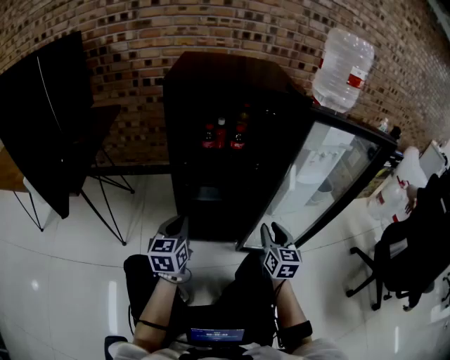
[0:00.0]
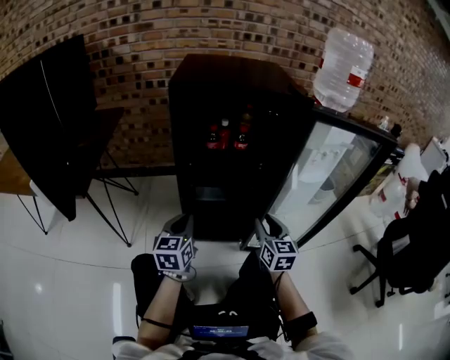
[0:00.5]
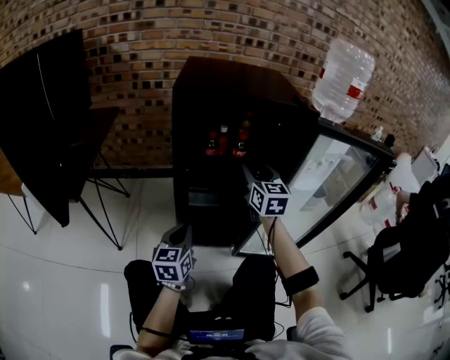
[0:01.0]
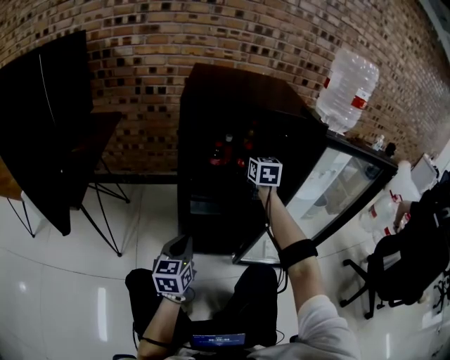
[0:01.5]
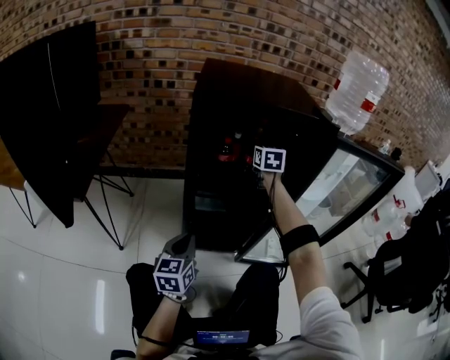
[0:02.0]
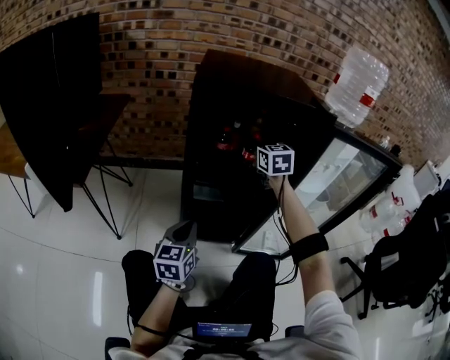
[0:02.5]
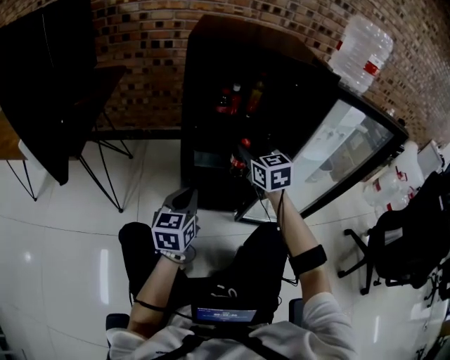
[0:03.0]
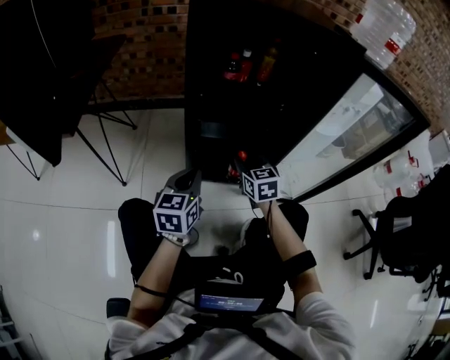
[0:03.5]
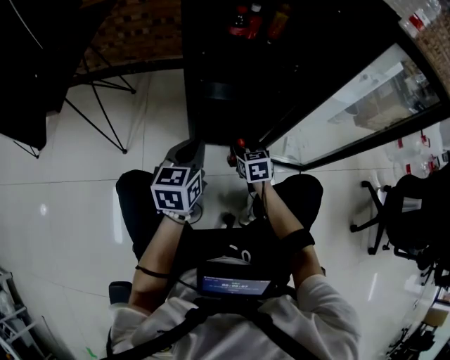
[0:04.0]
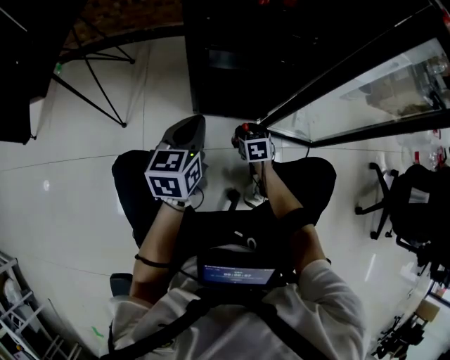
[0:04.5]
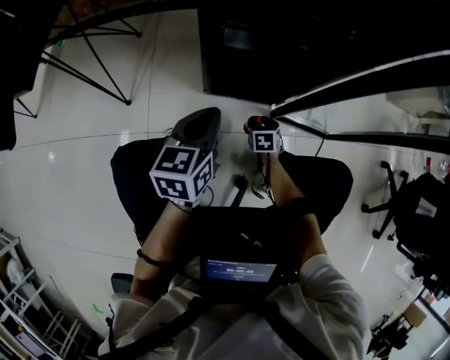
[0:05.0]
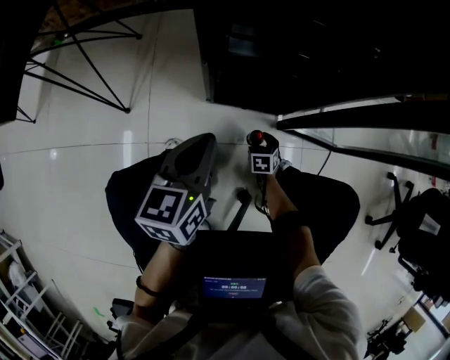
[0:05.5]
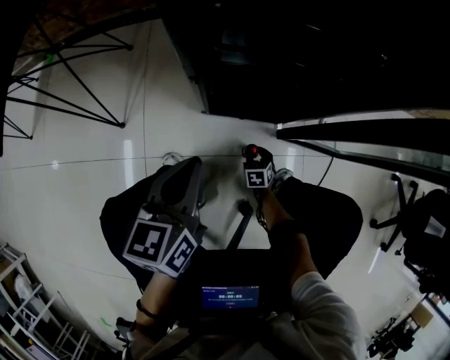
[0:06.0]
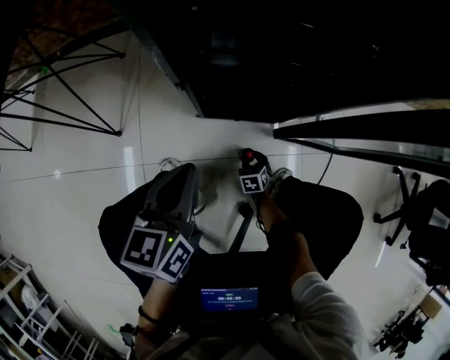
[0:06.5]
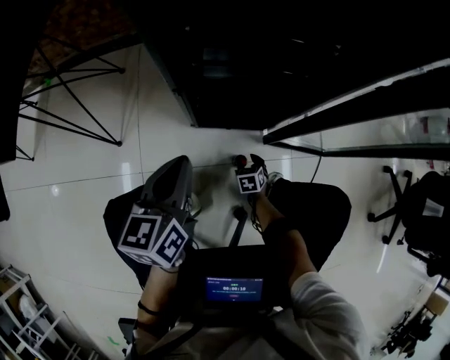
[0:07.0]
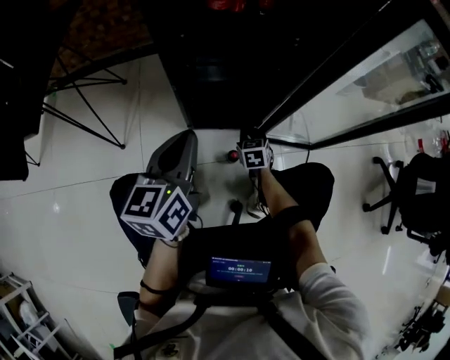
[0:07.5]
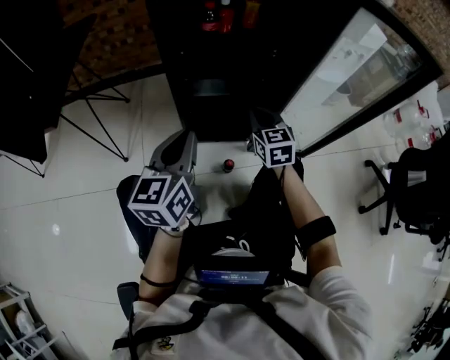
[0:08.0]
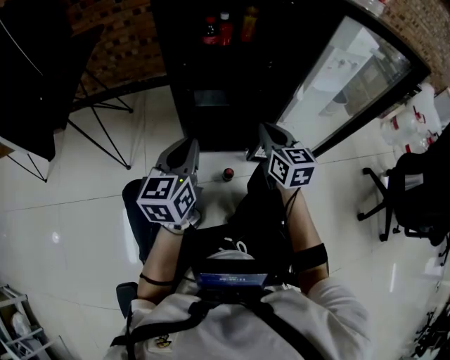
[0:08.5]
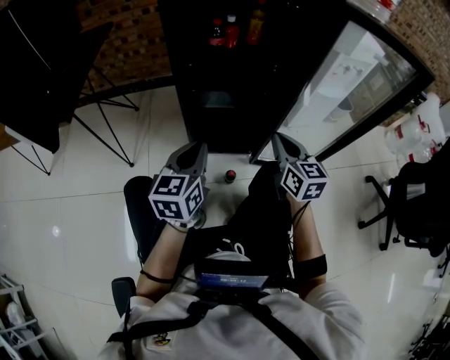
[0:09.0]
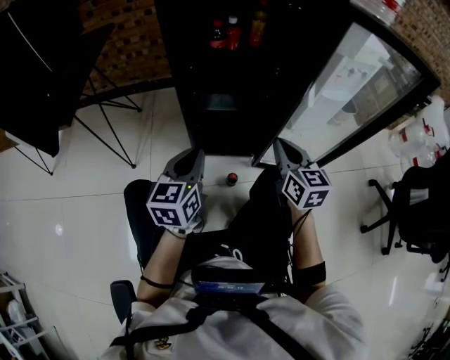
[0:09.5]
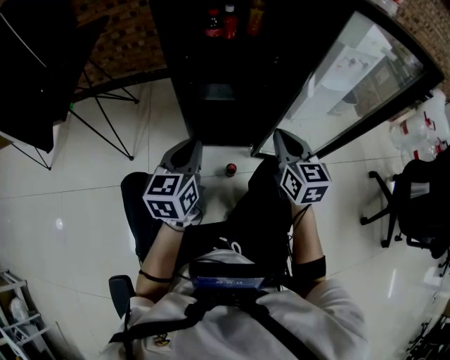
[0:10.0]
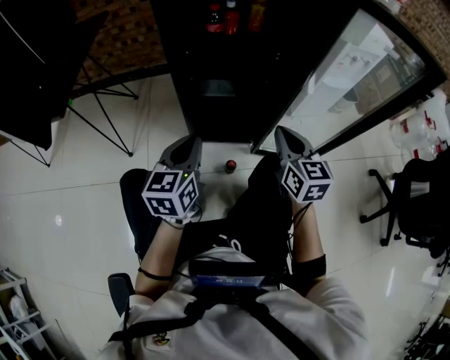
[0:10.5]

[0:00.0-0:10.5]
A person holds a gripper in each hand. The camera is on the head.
0:00.0 to 0:02.0: The right gripper moves forward, upward and to the left, about 40 cm, and opens, then closes once more.
0:02.0 to 0:04.0: The left gripper goes approximately 10 cm downward. The right gripper heads downward and backward, covering approximately 50 cm, and rotates roughly 30 degrees.
0:04.0 to 0:06.5: The right gripper travels downward by about 35 cm, and turns by roughly 20 degrees; the left gripper shifts some 10 cm downward.
0:06.5 to 0:08.5: The right gripper is displaced upward by about 60 cm, tilts its fingers approximately 50 degrees upward, and closes up, while the left gripper moves upward and backward, approximately 20 cm.
0:08.5 to 0:10.5: There are only small adjustments of the grippers.

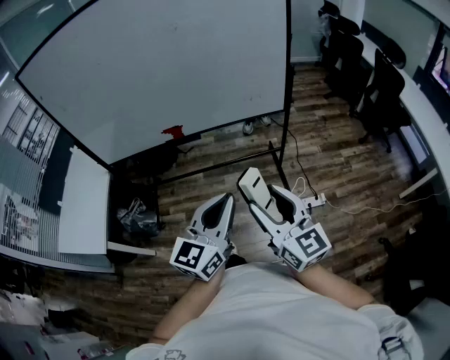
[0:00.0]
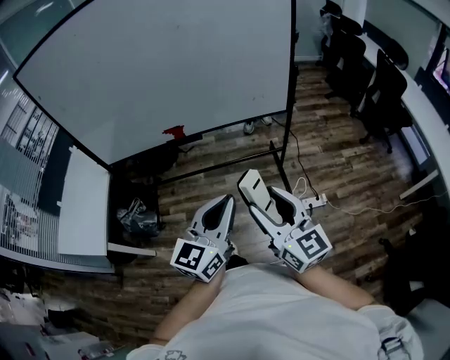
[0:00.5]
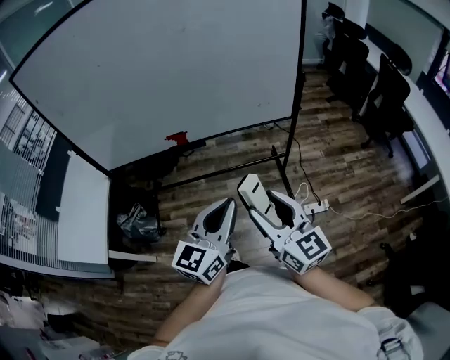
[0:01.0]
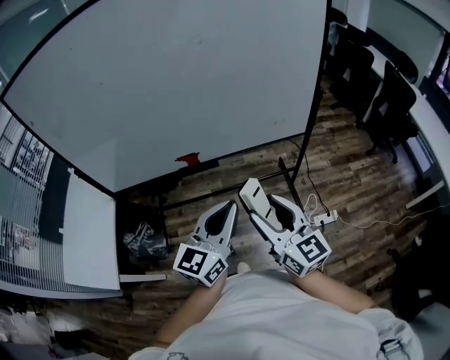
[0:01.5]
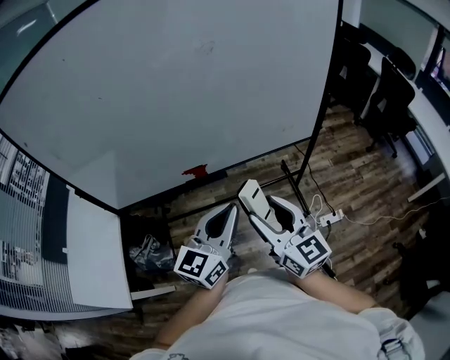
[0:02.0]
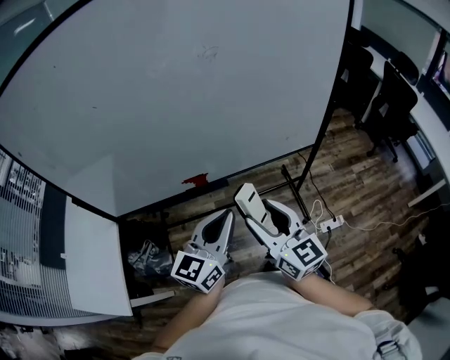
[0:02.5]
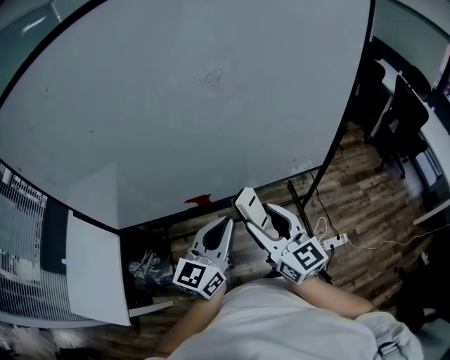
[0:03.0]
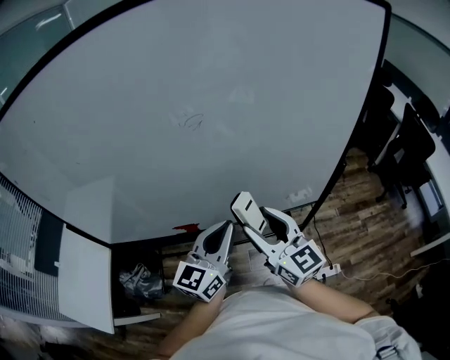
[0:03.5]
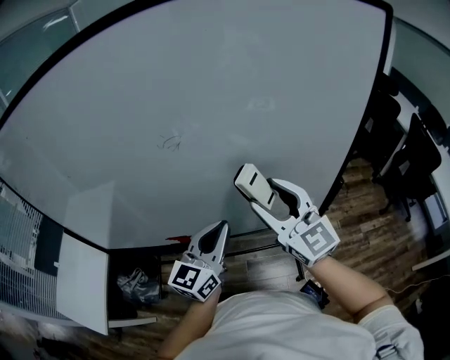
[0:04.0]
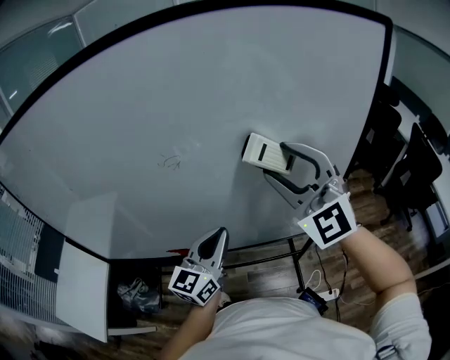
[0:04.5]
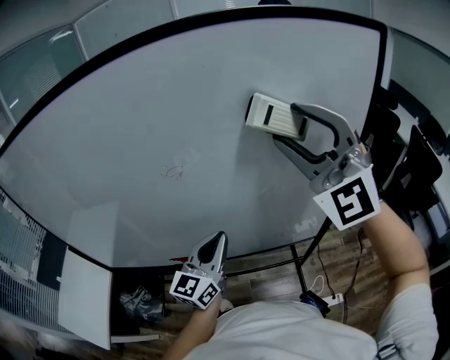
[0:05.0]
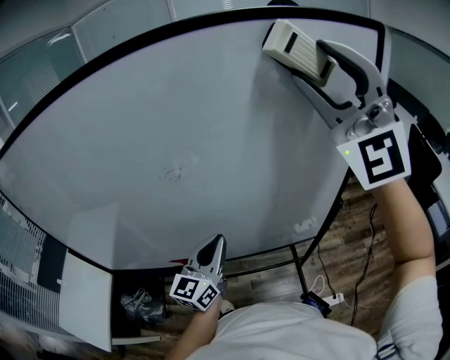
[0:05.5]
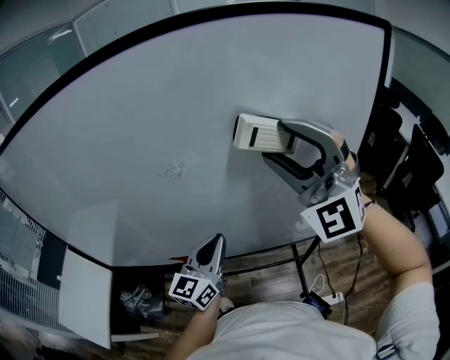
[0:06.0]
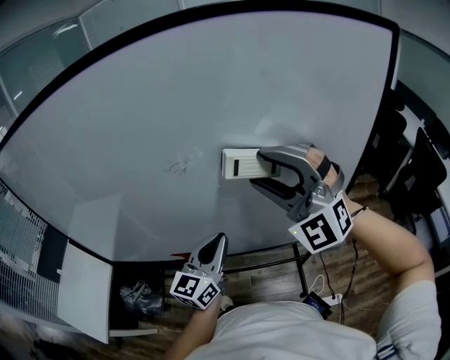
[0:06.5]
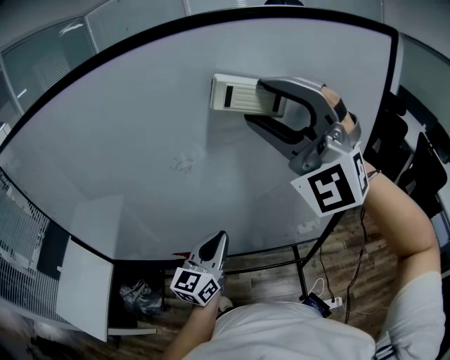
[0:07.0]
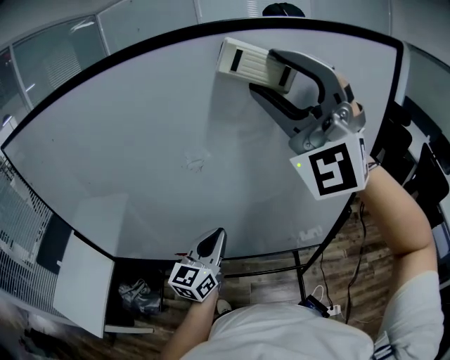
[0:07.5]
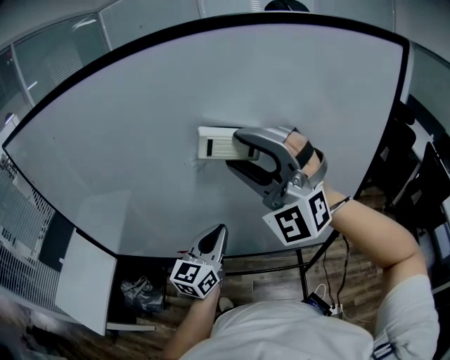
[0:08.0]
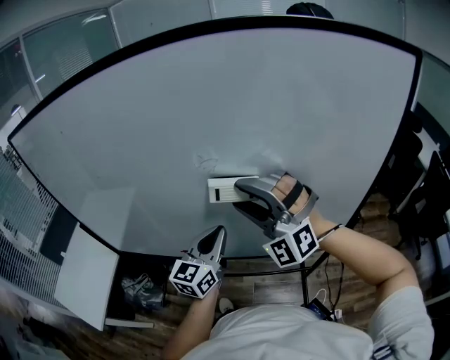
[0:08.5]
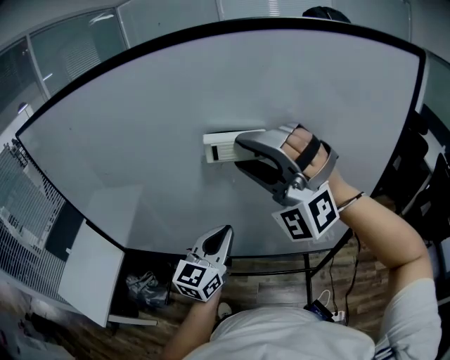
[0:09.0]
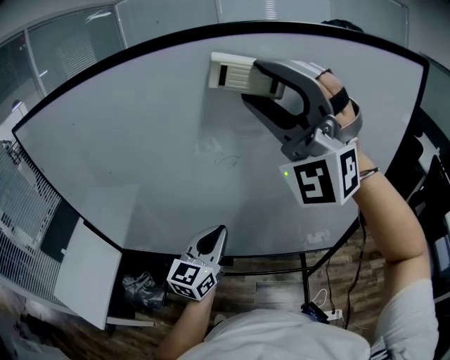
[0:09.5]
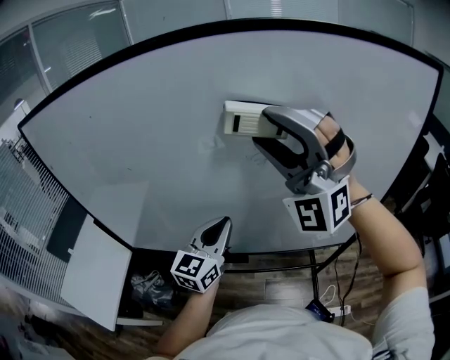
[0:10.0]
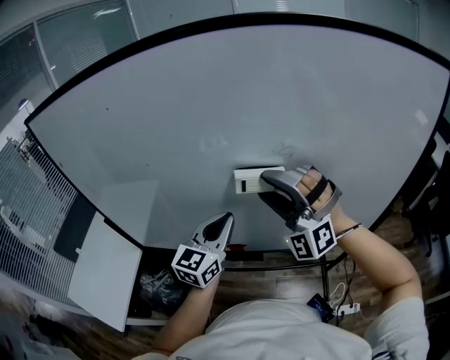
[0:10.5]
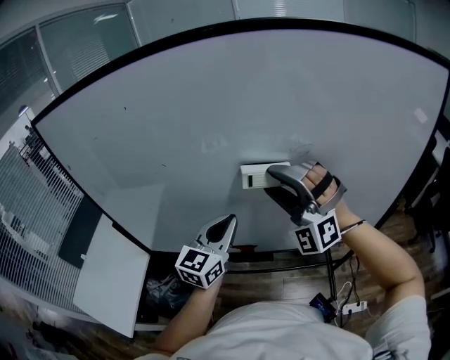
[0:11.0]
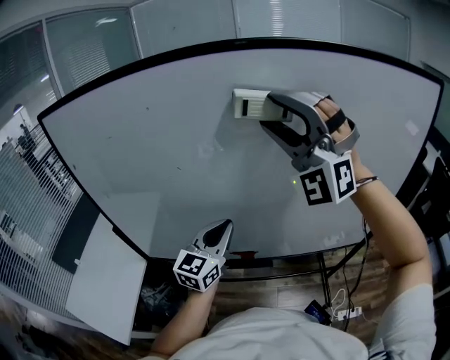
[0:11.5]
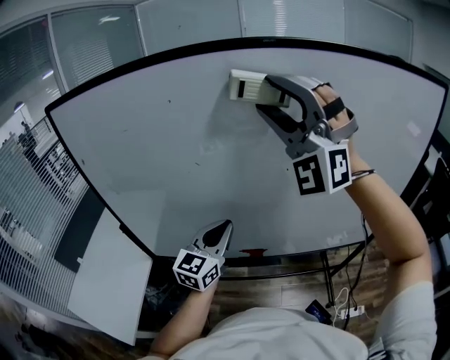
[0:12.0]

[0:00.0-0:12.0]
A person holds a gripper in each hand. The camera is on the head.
0:00.0 to 0:02.0: The grippers both shift forward and to the left by about 25 cm.
0:02.0 to 0:04.0: Both grippers move forward and to the right, about 30 cm. The right gripper rotates approximately 20 degrees.
0:04.0 to 0:06.0: The right gripper travels upward by about 15 cm, and rotates around the line of its fingers by about 50 degrees, counterclockwise from behind.
0:06.0 to 0:08.0: The right gripper moves up and down over some 20 cm, changing direction 2 times.
0:08.0 to 0:10.0: The right gripper moves up and down over about 25 cm, changing direction 2 times; the left gripper moves to the left, approximately 10 cm.
0:10.0 to 0:12.0: The grippers both shift to the left by some 15 cm. The right gripper moves approximately 15 cm downward and comes back.

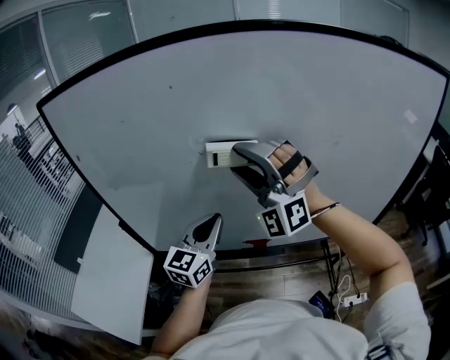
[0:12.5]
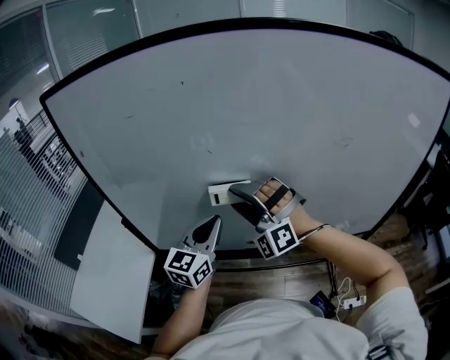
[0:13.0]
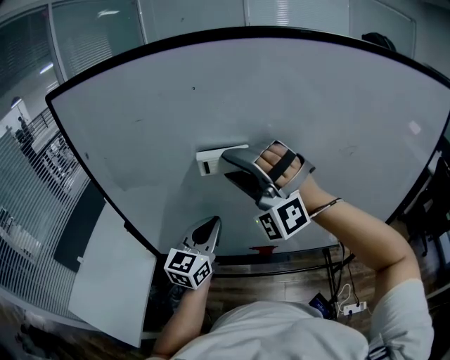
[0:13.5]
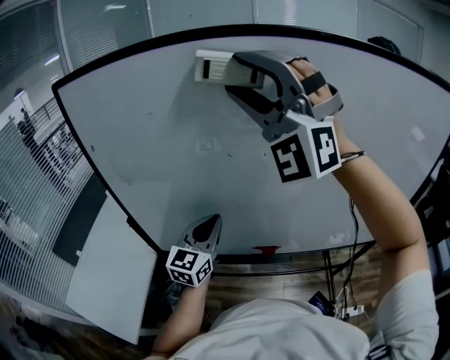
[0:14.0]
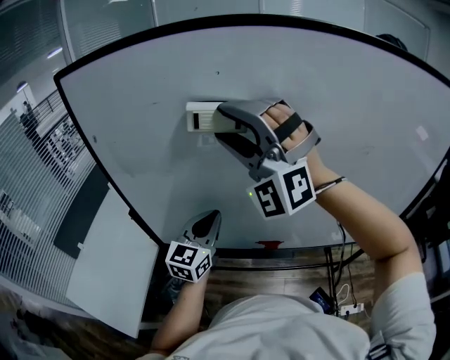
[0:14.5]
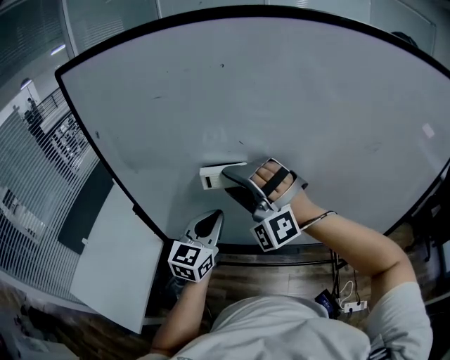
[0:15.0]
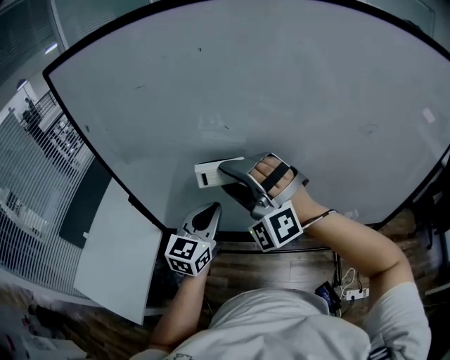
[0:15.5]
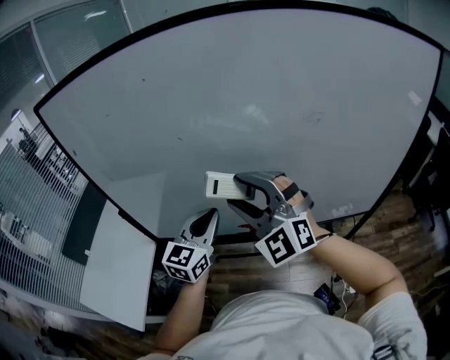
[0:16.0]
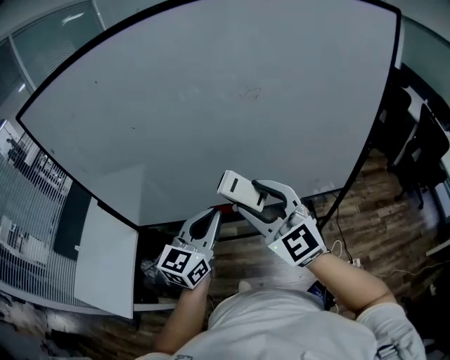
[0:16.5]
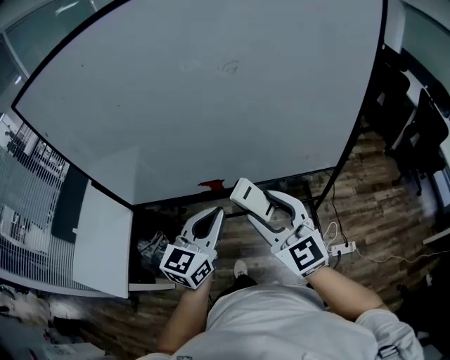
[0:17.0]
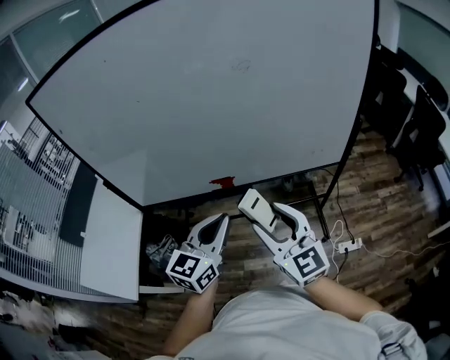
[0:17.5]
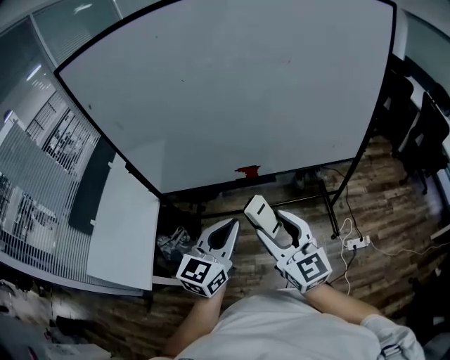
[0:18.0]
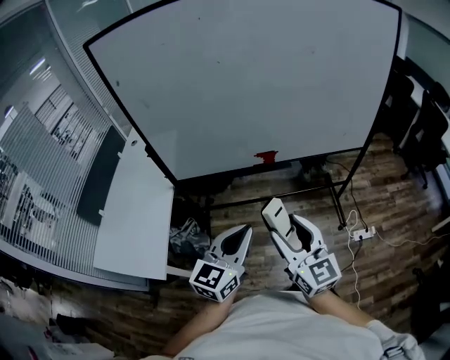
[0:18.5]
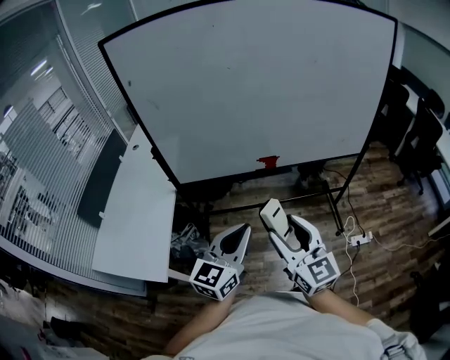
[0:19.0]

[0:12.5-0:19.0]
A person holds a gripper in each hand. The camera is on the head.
0:12.5 to 0:14.5: The right gripper moves up and down over about 35 cm, changing direction 2 times, while the left gripper is displaced to the left by some 5 cm.
0:14.5 to 0:17.0: The left gripper heads to the right and backward, covering about 35 cm, while the right gripper goes approximately 50 cm to the right, backward and downward, and rotates around the line of its fingers by approximately 80 degrees, clockwise from behind.
0:17.0 to 0:19.0: Both grippers move to the left and backward, approximately 35 cm.
